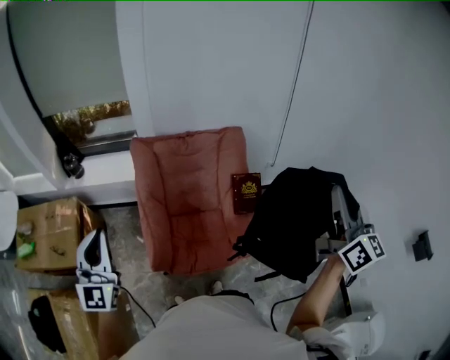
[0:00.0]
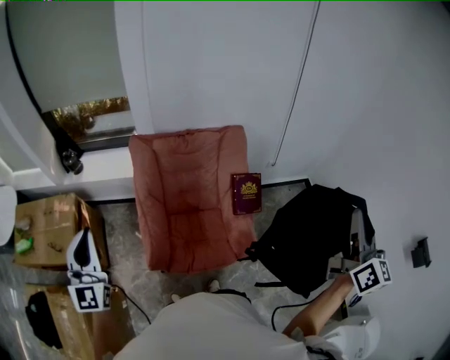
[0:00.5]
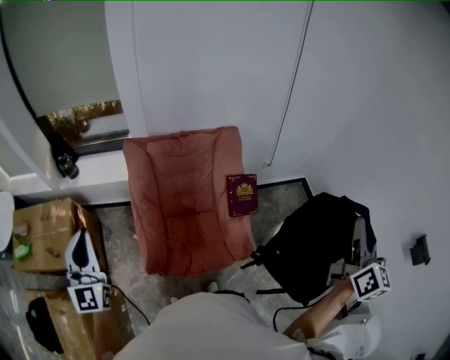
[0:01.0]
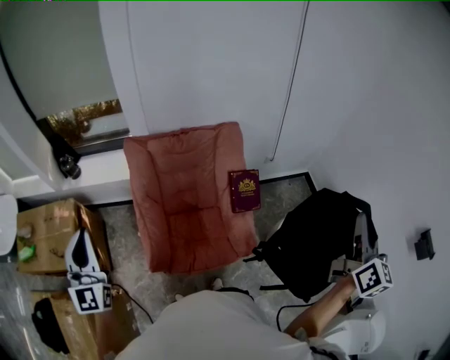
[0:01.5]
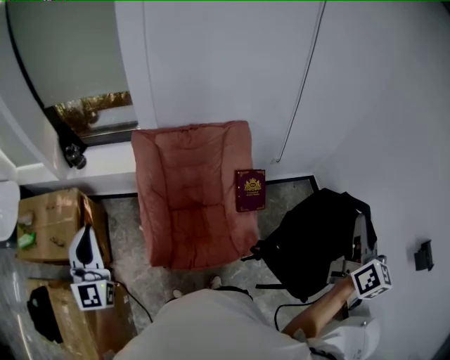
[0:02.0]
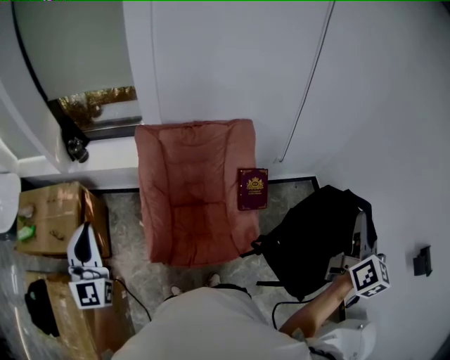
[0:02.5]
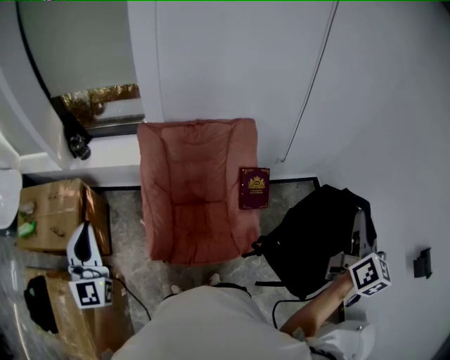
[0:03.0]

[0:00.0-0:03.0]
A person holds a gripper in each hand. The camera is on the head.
0:00.0 to 0:01.5: The right gripper is displaced to the right by some 10 cm, and turns by some 20 degrees.
0:01.5 to 0:03.0: There are only small adjustments of the grippers.

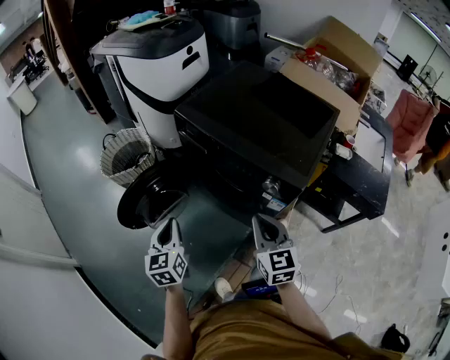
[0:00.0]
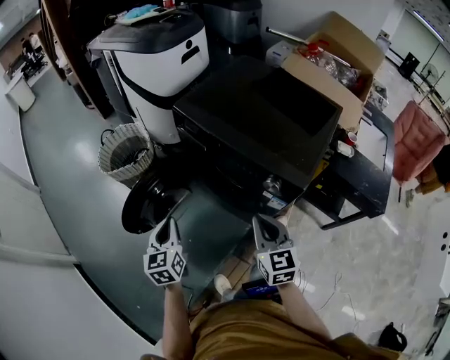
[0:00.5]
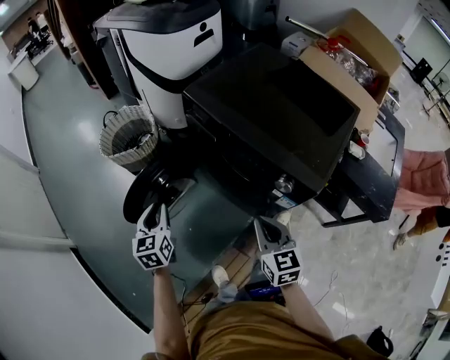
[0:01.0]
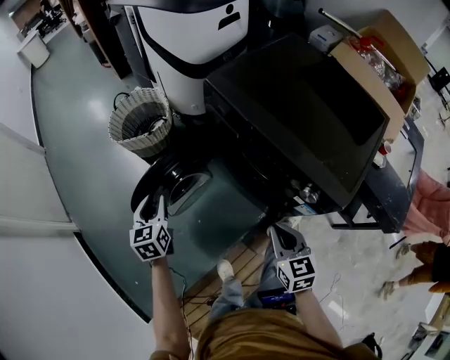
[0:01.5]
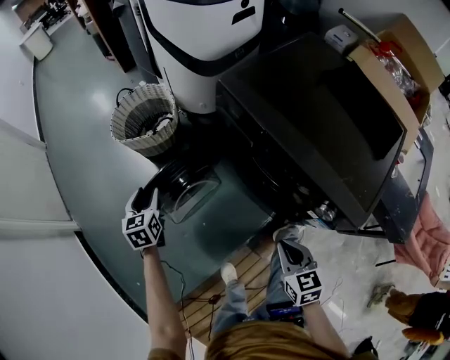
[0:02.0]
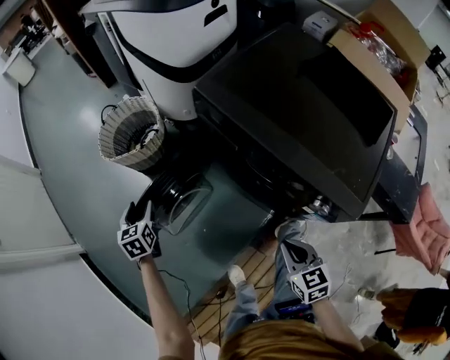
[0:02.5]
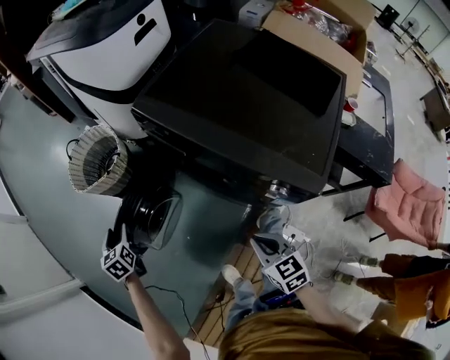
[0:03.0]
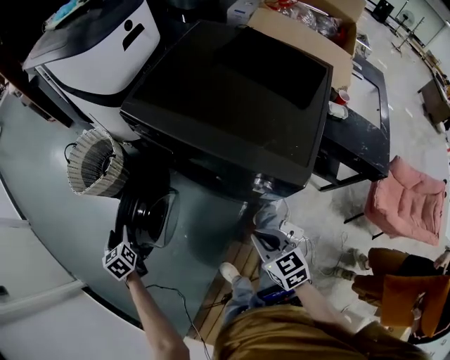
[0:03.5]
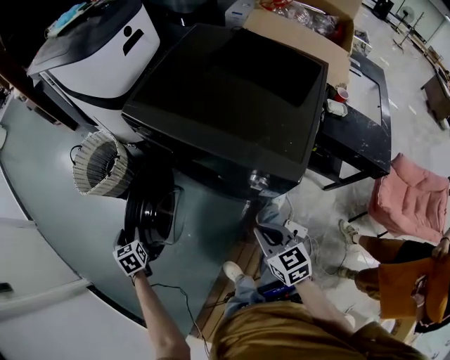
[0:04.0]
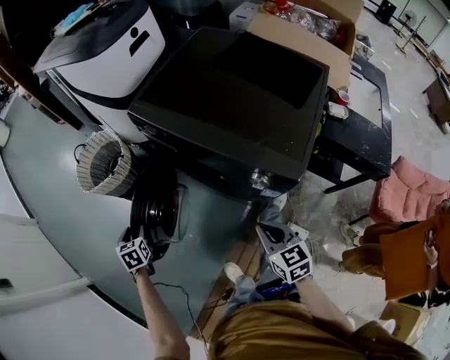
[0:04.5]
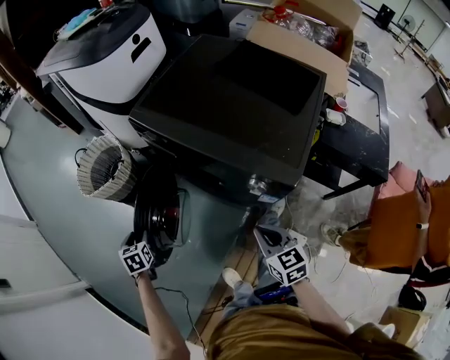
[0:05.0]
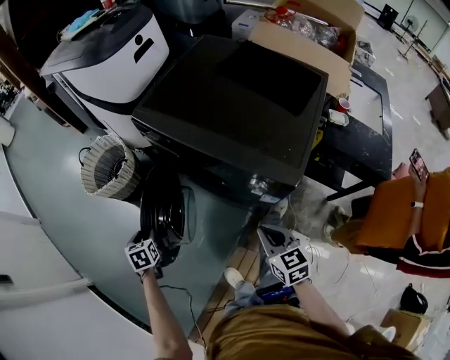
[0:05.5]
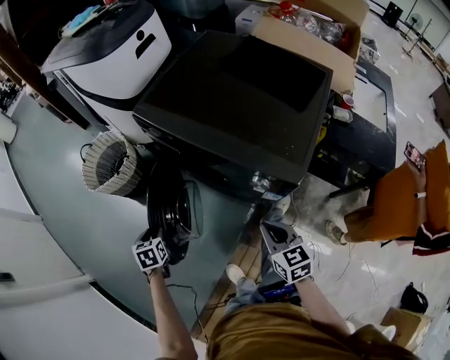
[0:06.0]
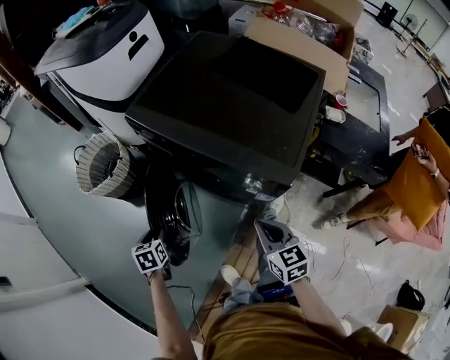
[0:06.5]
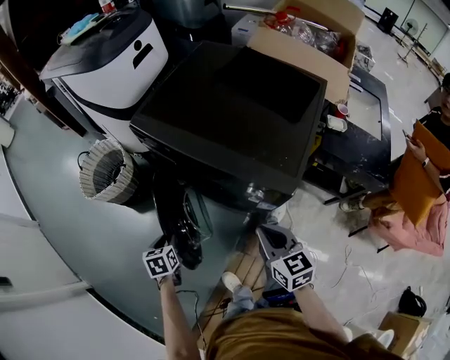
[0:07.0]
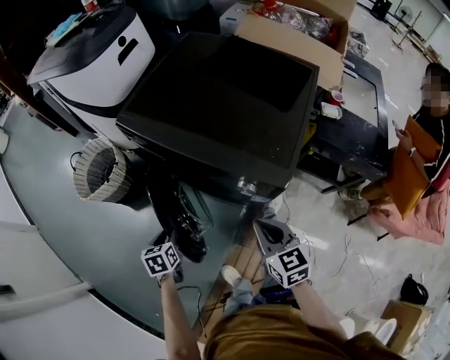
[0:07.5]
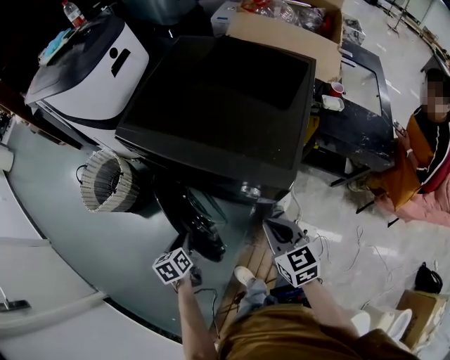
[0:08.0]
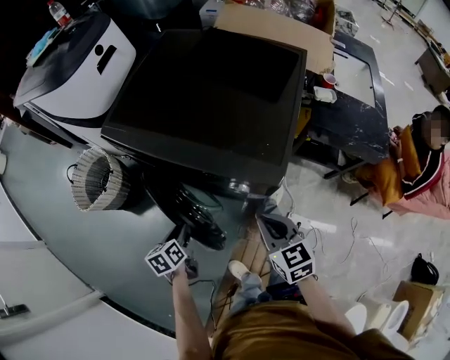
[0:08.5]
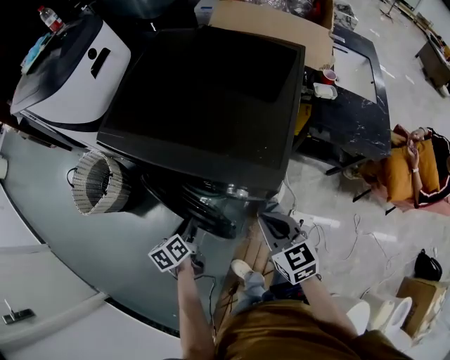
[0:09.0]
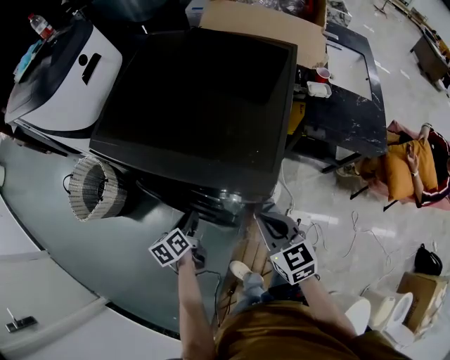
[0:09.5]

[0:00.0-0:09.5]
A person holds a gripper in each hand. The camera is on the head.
0:00.0 to 0:02.0: The right gripper goes about 15 cm downward, and changes its angle by about 30 degrees. The left gripper travels forward, to the left and downward by approximately 30 cm, swivels approximately 20 degrees, and opens its fingers.
0:02.0 to 0:04.0: The right gripper moves to the right and backward, approximately 10 cm; the left gripper heads backward and to the right, covering about 10 cm, and turns by some 20 degrees.
0:04.0 to 0:05.5: The left gripper ends up about 5 cm from where it was.
0:05.5 to 0:07.5: The left gripper travels to the right by about 15 cm.
0:07.5 to 0:09.5: The left gripper is displaced to the right and forward by roughly 15 cm, and swivels approximately 30 degrees. The right gripper moves to the right, some 5 cm.

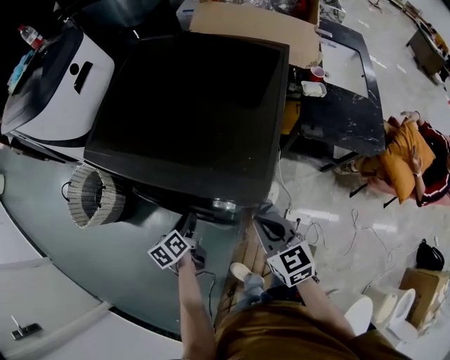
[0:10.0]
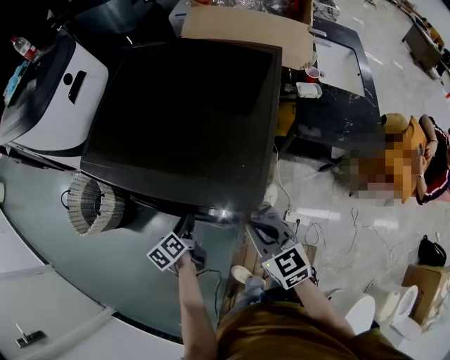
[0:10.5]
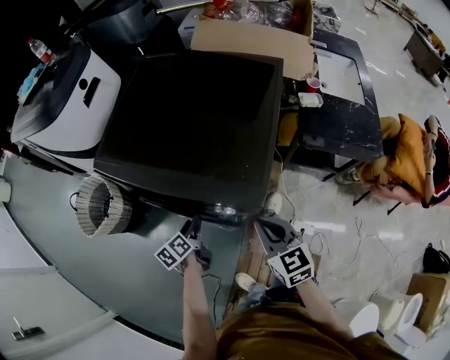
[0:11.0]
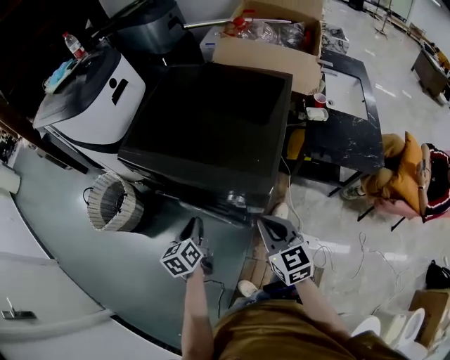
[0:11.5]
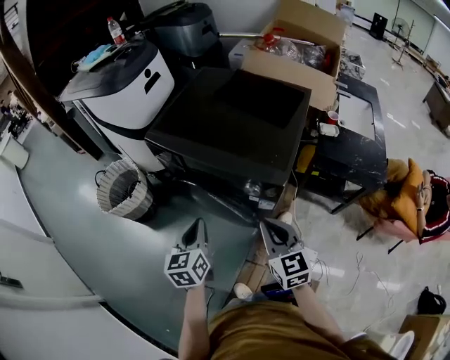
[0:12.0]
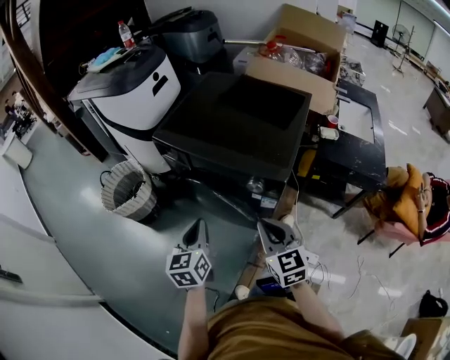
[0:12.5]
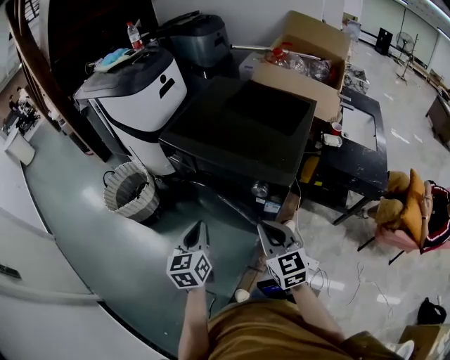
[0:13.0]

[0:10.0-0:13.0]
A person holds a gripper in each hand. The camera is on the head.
0:10.0 to 0:11.5: The right gripper moves upward, approximately 5 cm; the left gripper is displaced upward by approximately 10 cm, and closes up.
0:11.5 to 0:13.0: The right gripper heads to the left, backward and upward, covering about 15 cm, while the left gripper shifts roughly 20 cm upward, backward and to the left.

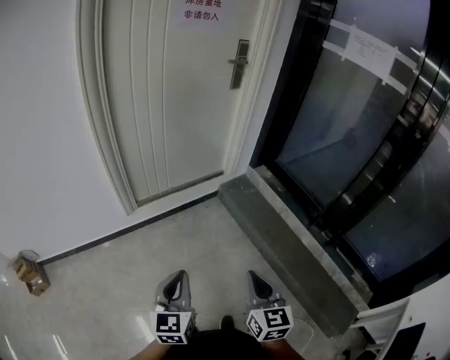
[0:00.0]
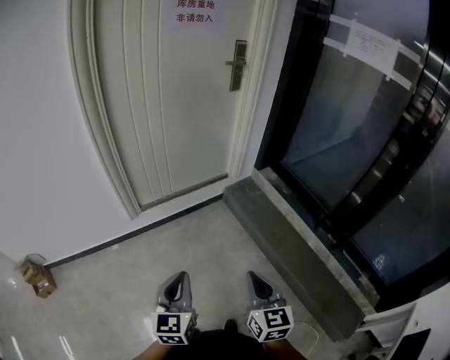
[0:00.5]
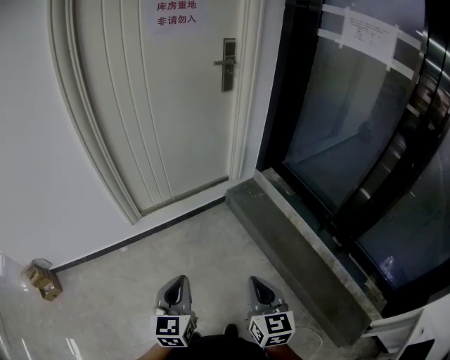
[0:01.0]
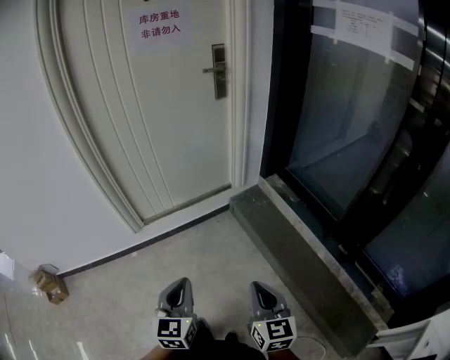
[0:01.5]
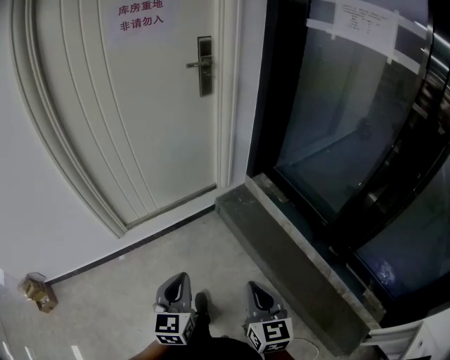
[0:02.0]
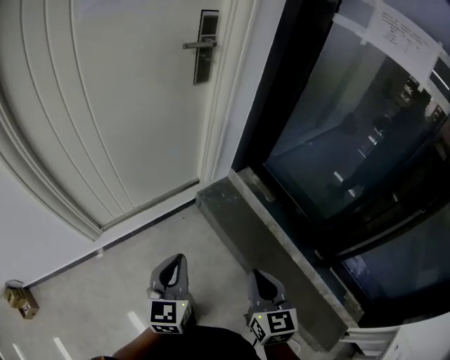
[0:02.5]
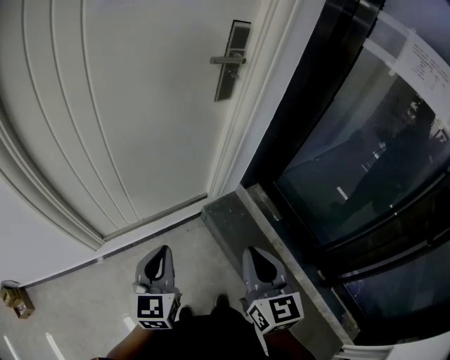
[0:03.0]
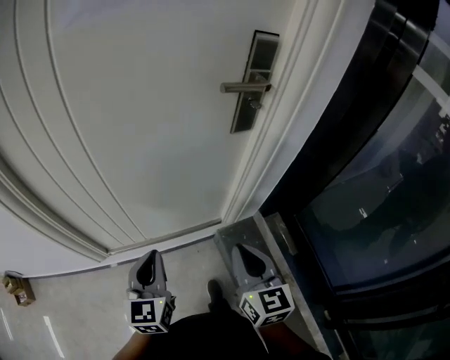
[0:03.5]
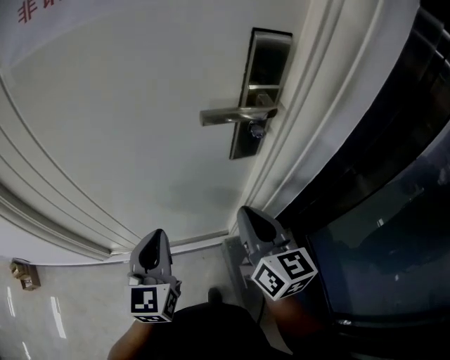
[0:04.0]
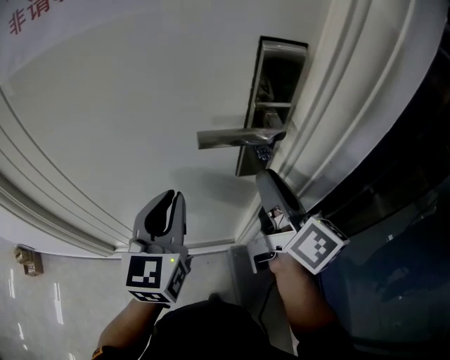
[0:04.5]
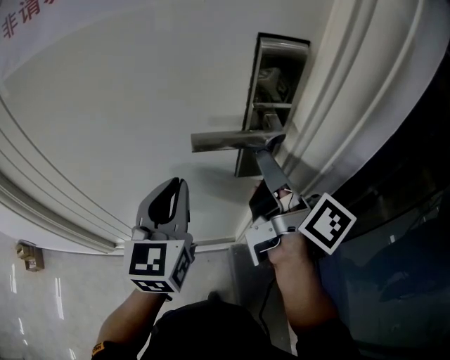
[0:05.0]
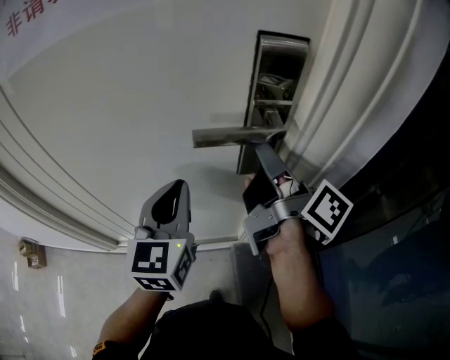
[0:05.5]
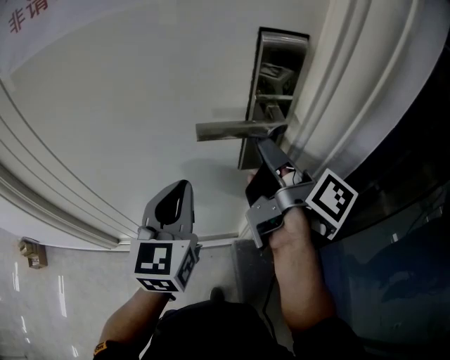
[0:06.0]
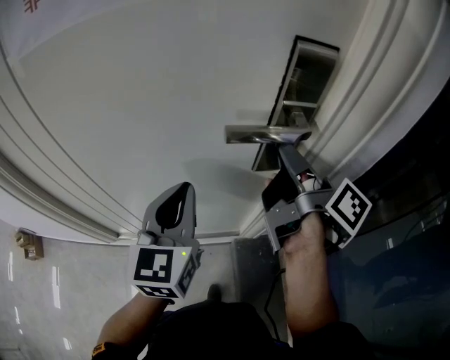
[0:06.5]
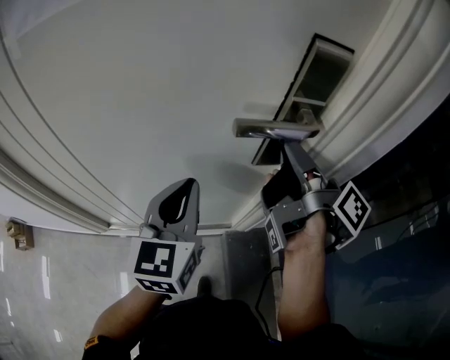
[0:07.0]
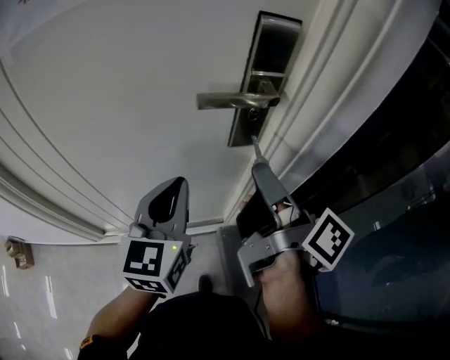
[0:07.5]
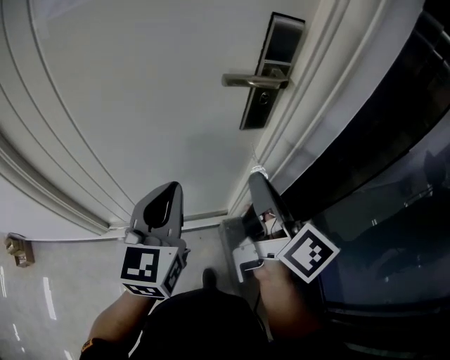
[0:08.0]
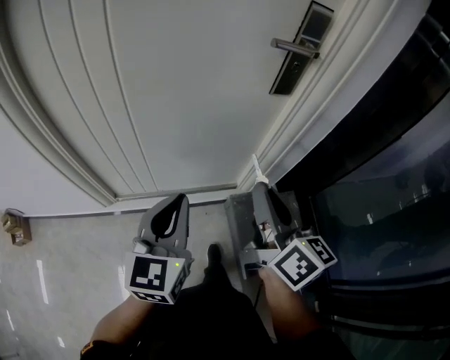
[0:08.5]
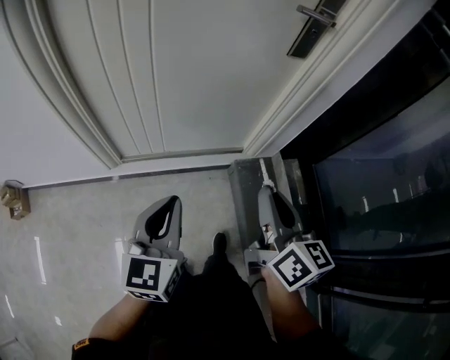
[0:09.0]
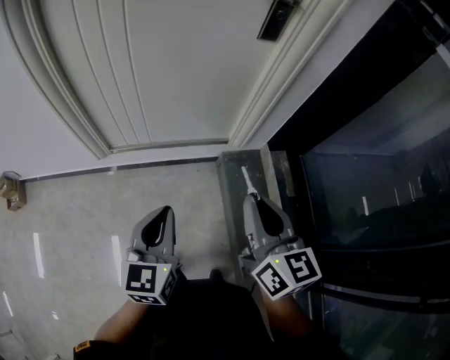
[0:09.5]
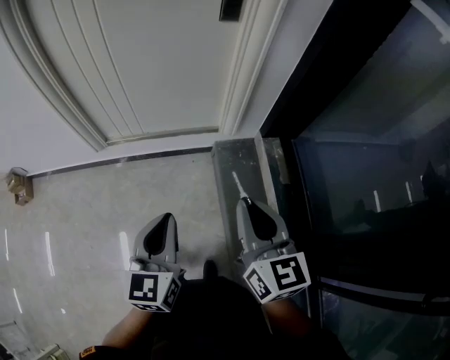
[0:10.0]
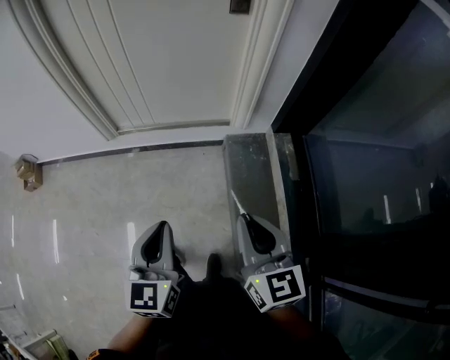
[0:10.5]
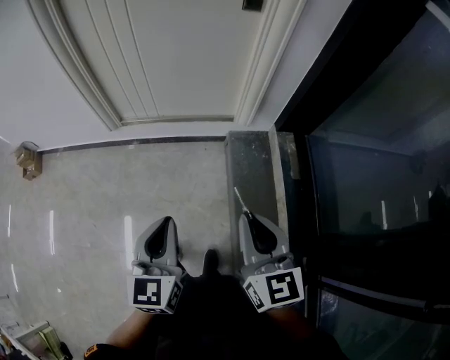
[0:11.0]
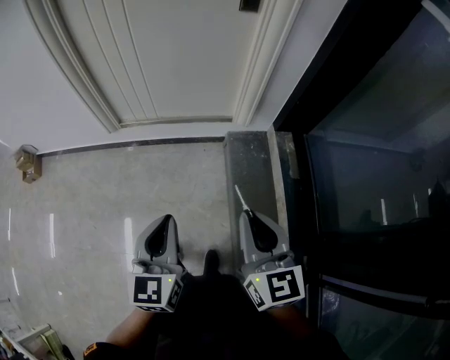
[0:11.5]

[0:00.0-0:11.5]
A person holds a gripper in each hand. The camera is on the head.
0:00.0 to 0:02.0: The grippers both shift to the right and forward by roughly 25 cm.
0:02.0 to 0:04.0: The two grippers travel together, some 70 cm. The right gripper rotates approximately 30 degrees, while the left gripper rotates about 20 degrees.
0:04.0 to 0:06.0: The right gripper shifts roughly 15 cm forward and upward, and twists some 60 degrees clockwise, seen from behind; the left gripper moves forward, upward and to the right, approximately 15 cm.
0:06.0 to 0:07.5: The right gripper shifts some 10 cm backward.
0:07.5 to 0:09.5: Both grippers are carried backward, some 40 cm. The right gripper twists roughly 60 degrees counterclockwise, seen from behind.
0:09.5 to 0:11.5: The grippers both shift backward and to the right by about 20 cm.
